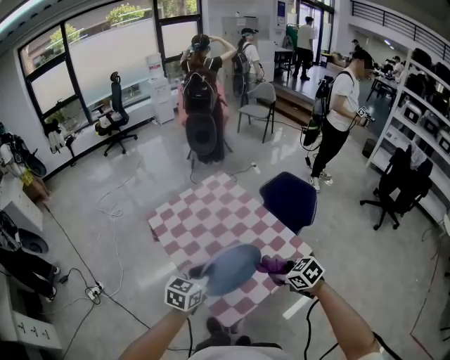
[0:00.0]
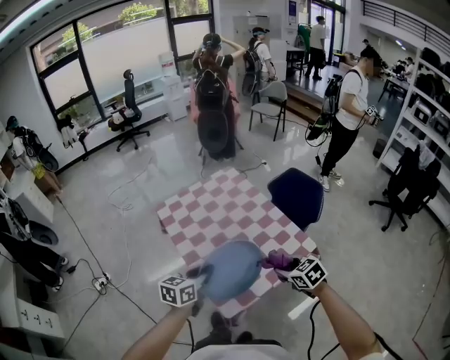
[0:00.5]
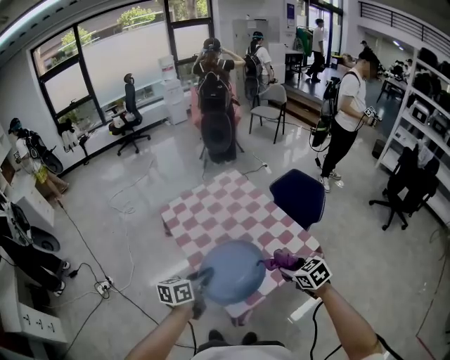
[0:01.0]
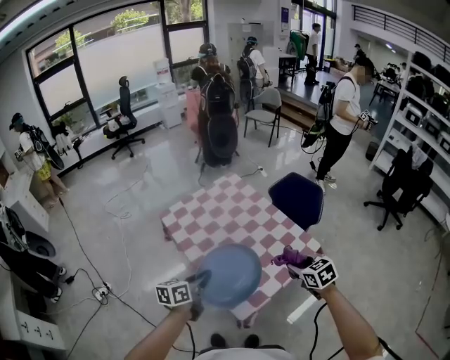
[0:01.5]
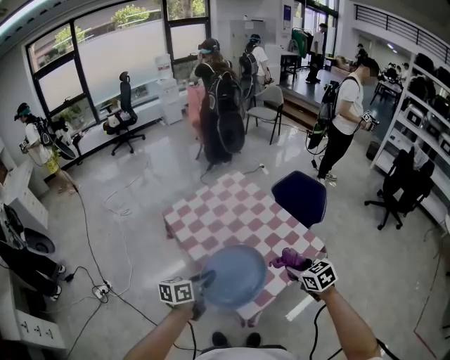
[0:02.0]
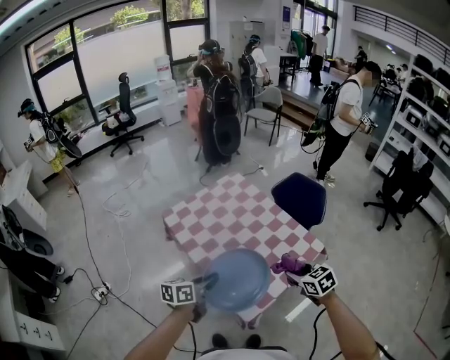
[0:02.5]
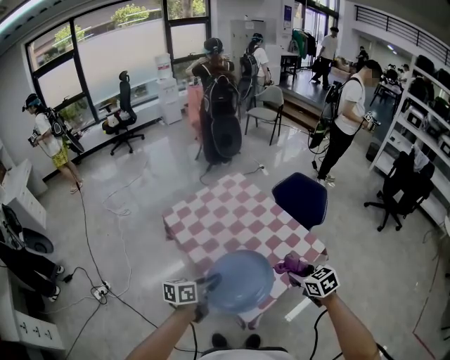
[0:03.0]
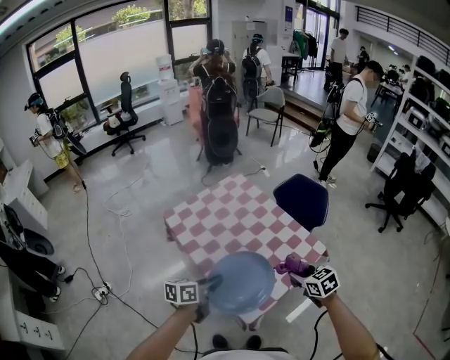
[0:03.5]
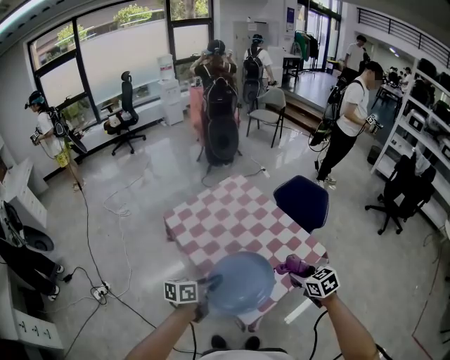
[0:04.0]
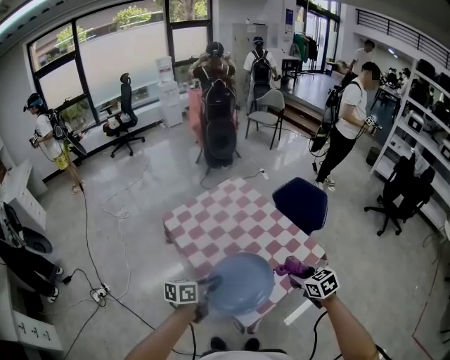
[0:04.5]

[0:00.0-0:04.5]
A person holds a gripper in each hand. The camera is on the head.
0:00.0 to 0:02.0: The left gripper moves to the left and backward, approximately 15 cm, and changes its angle by about 30 degrees. The right gripper moves approximately 5 cm.
0:02.0 to 0:04.5: The grippers make only small movements.

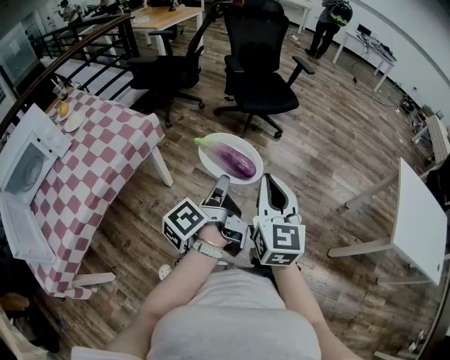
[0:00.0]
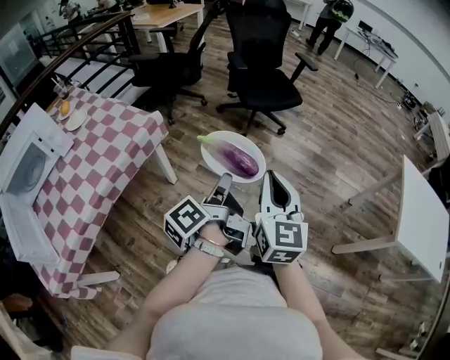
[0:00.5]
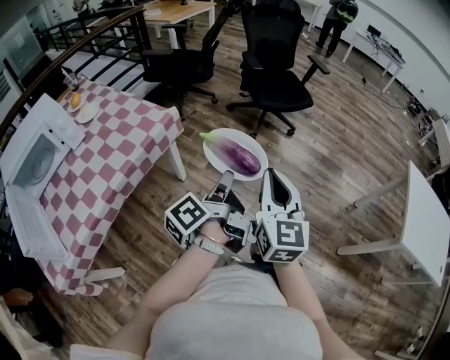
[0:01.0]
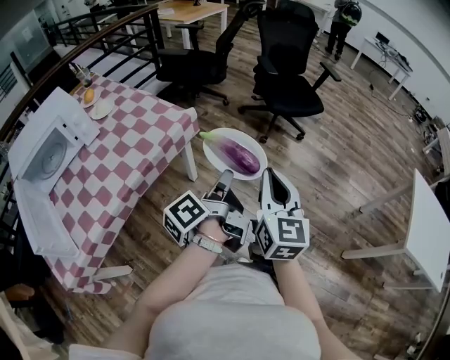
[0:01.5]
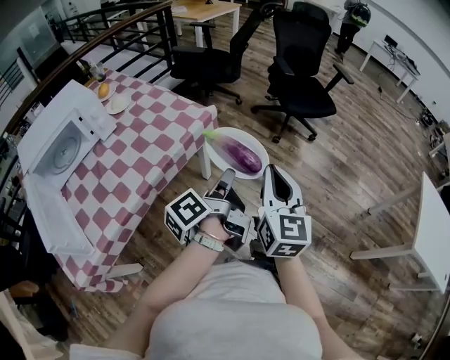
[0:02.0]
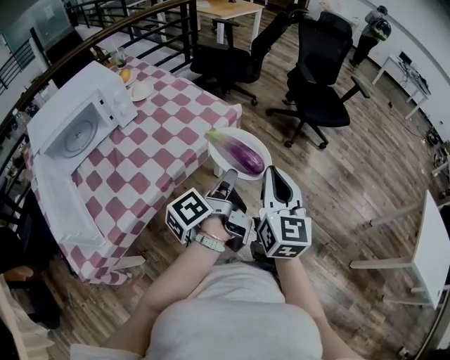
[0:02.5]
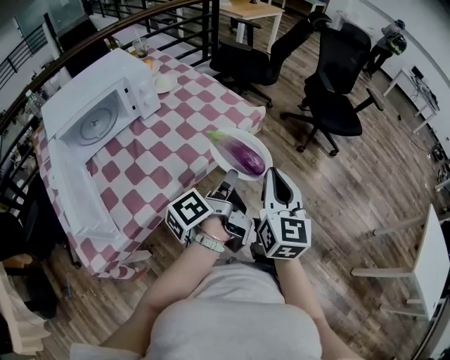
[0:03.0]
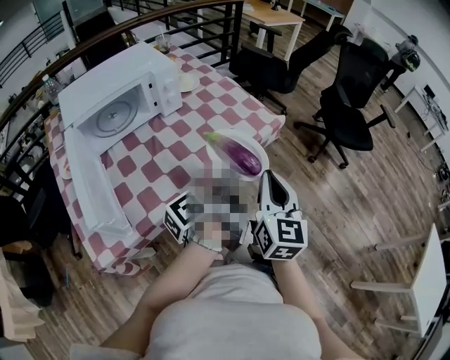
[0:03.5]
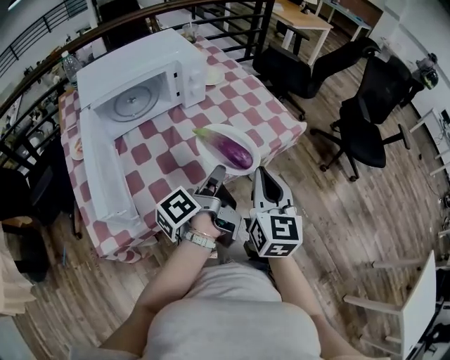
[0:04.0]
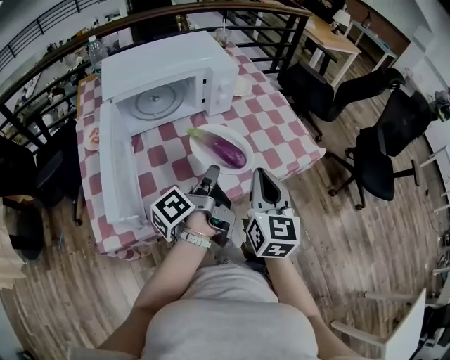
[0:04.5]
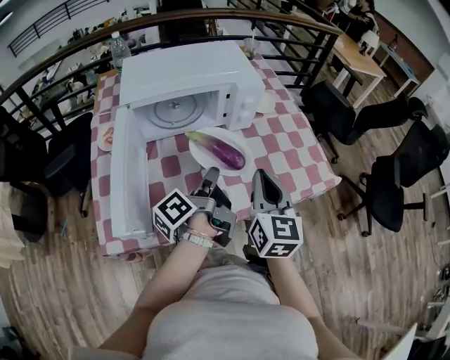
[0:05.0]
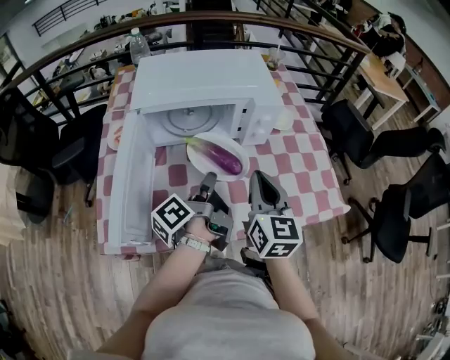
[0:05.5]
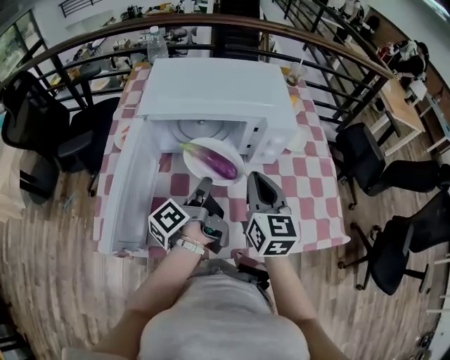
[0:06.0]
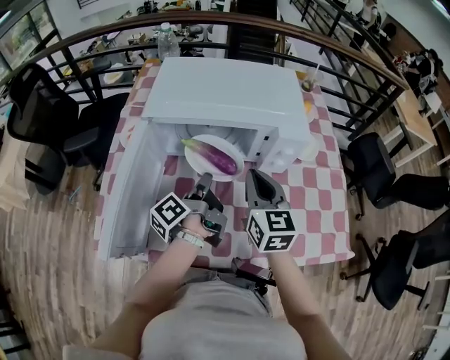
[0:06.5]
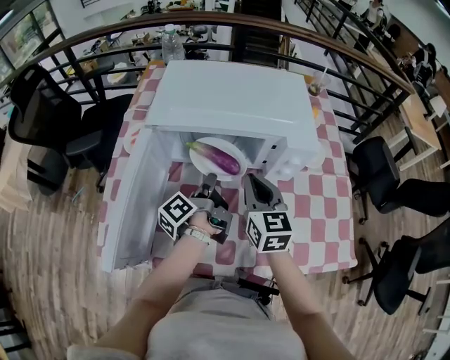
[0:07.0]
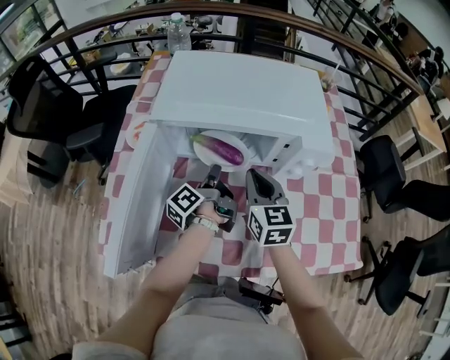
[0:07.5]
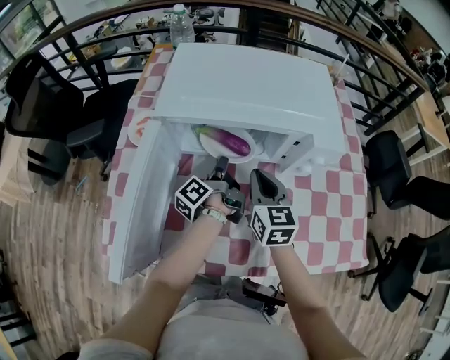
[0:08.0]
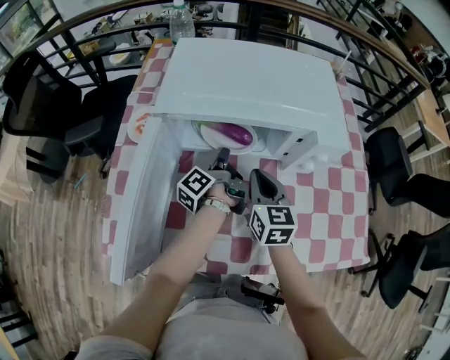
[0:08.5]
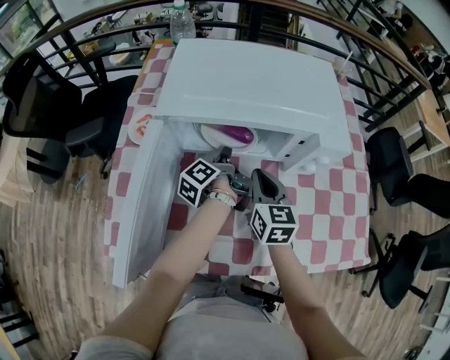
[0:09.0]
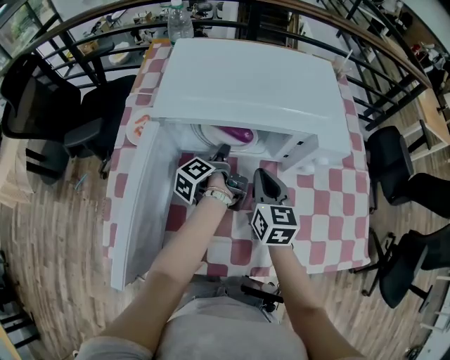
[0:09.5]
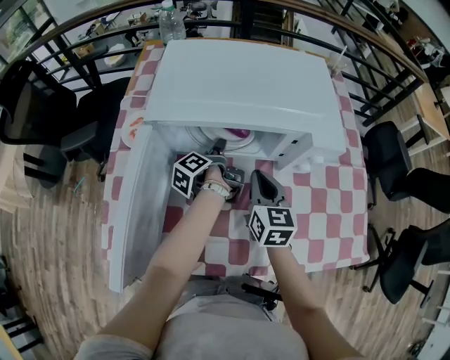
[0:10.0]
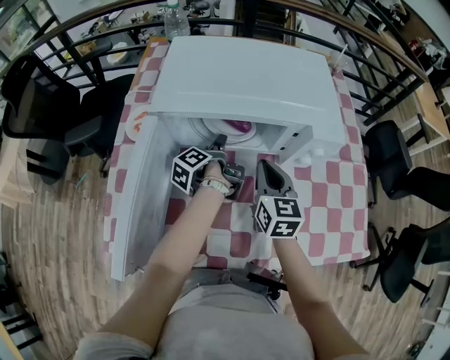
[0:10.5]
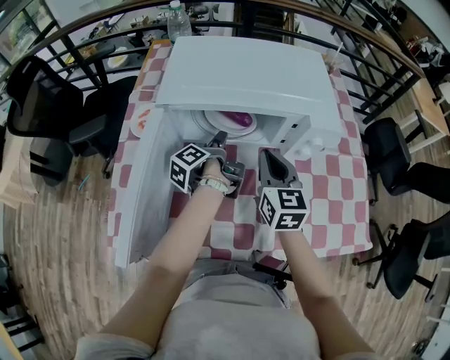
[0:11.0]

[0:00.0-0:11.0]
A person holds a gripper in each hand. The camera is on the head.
0:00.0 to 0:02.0: The right gripper shifts by some 25 cm.
0:02.0 to 0:03.5: The right gripper moves approximately 25 cm.
0:03.5 to 0:05.5: The right gripper moves about 30 cm, and turns by some 40 degrees.
0:05.5 to 0:07.5: The right gripper ends up approximately 20 cm from where it was, and rotates some 20 degrees.
0:09.0 to 0:11.0: The right gripper moves upward, about 5 cm.

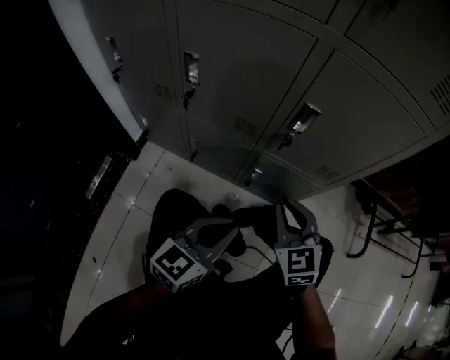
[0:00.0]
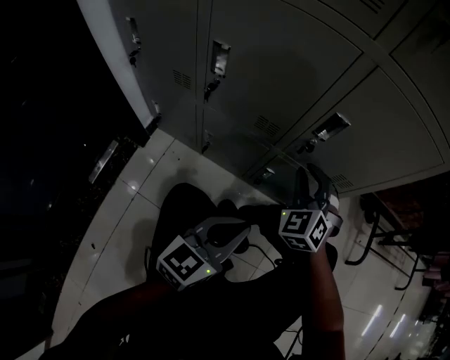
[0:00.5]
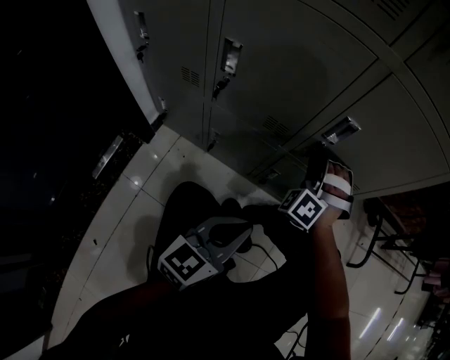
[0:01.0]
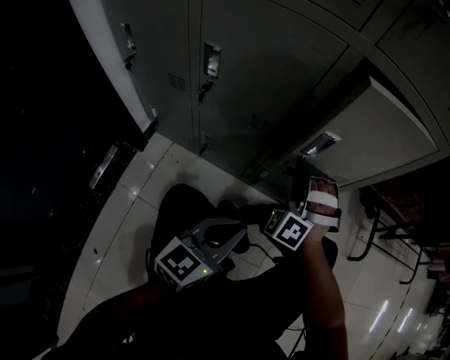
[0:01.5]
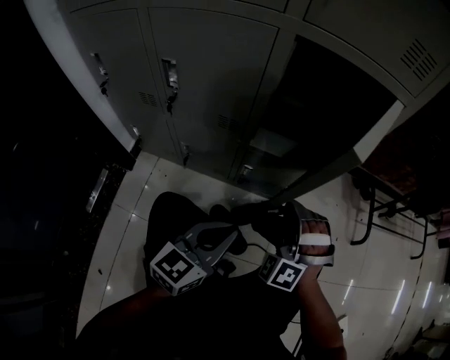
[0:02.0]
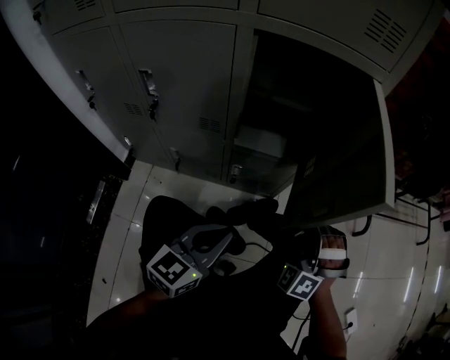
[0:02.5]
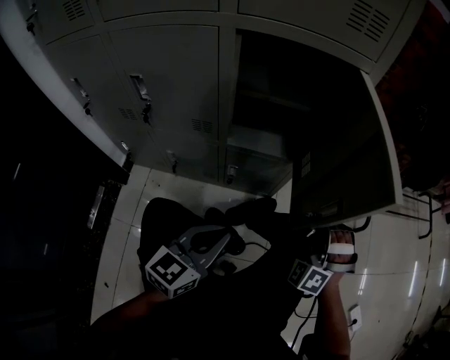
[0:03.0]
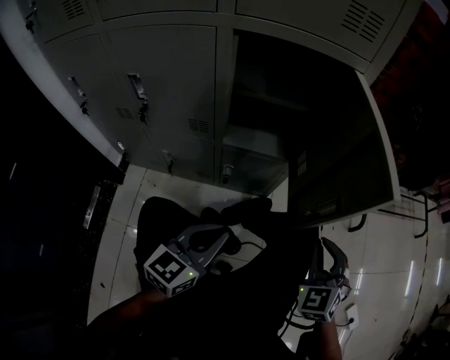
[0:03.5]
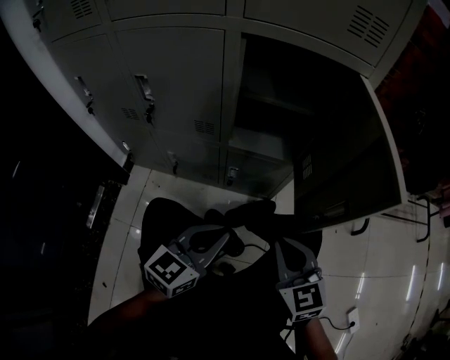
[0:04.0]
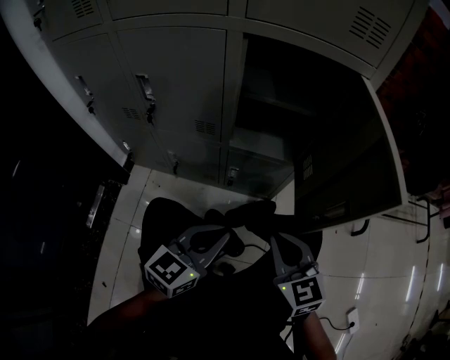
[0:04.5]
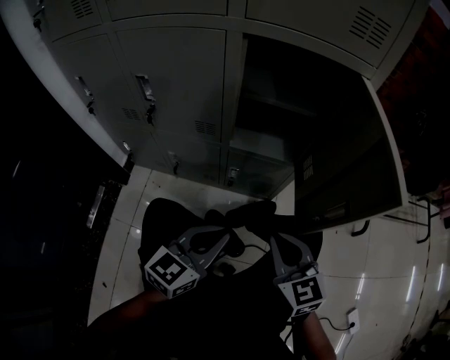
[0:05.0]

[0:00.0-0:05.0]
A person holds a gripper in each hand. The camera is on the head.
0:00.0 to 0:02.5: The left gripper is displaced to the right by some 5 cm. Meanwhile the right gripper moves to the right, about 15 cm, and changes its angle by roughly 60 degrees.
0:02.5 to 0:05.0: The right gripper goes about 10 cm backward and to the left, and rolls clockwise, seen from behind, by about 70 degrees.

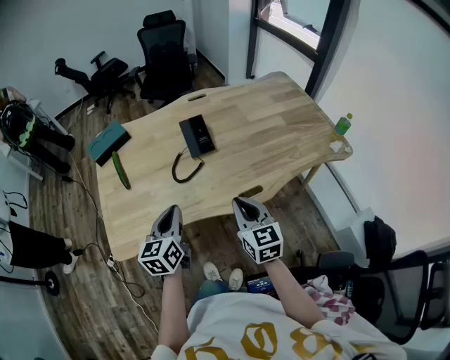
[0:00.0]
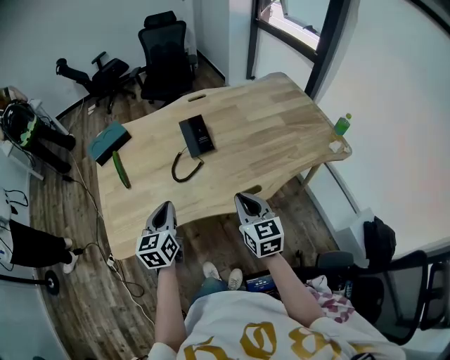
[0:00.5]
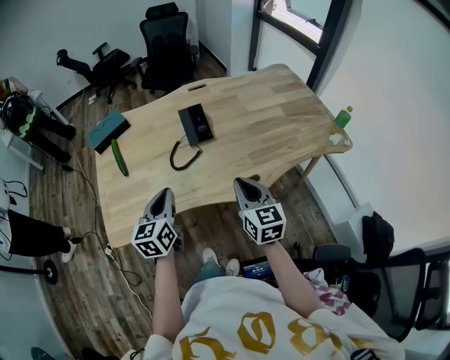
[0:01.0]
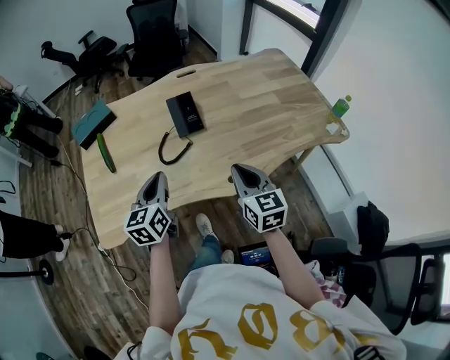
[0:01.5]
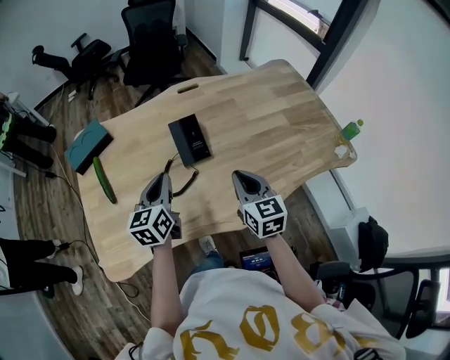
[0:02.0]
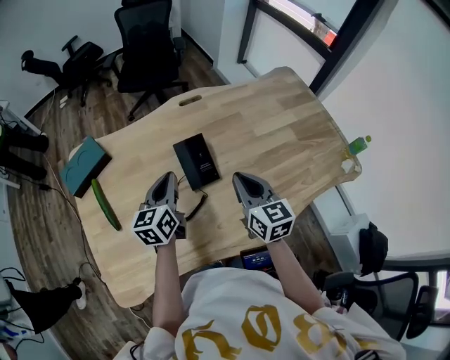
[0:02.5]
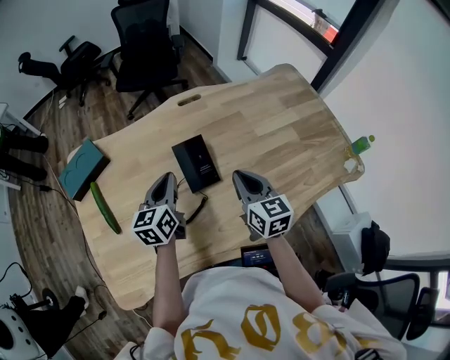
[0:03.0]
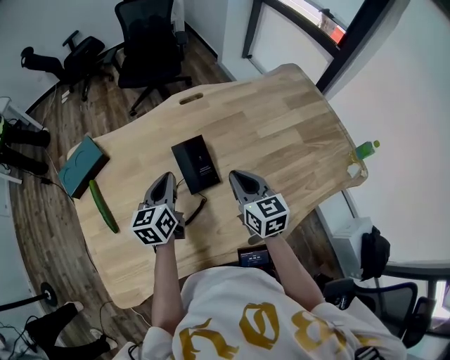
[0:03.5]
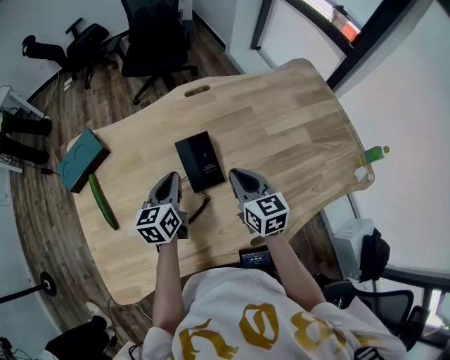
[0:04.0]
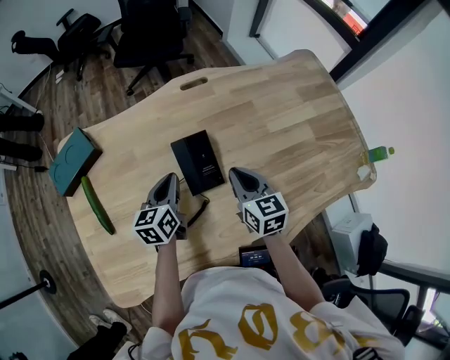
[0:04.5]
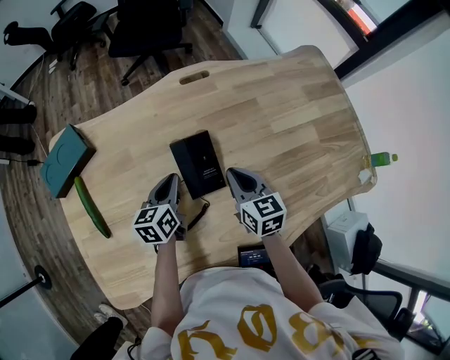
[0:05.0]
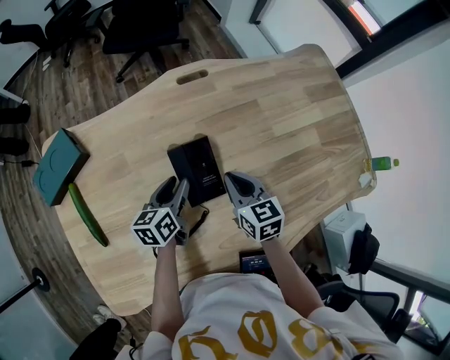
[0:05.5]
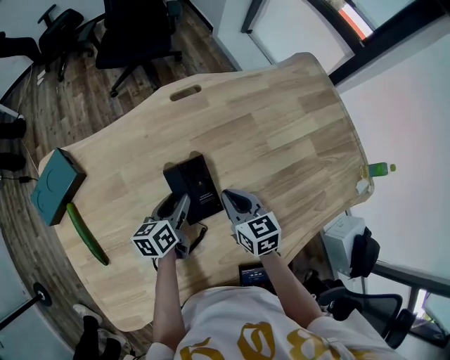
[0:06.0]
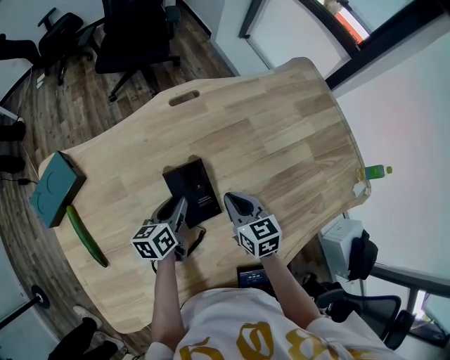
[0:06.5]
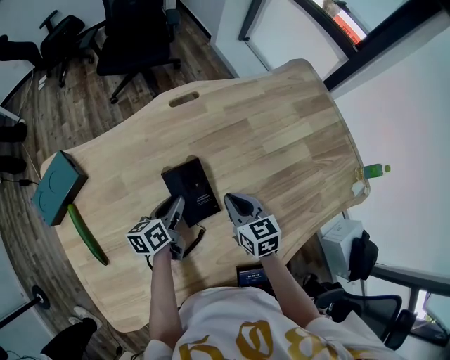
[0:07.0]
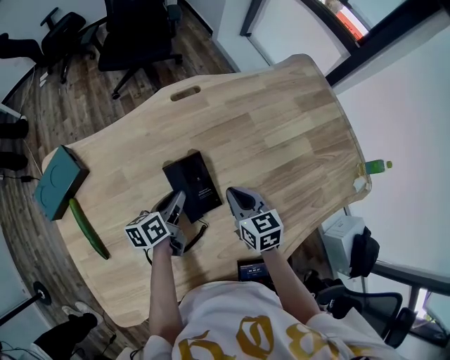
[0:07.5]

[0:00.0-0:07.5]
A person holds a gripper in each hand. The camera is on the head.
0:00.0 to 0:02.0: Both grippers move forward, approximately 20 cm.
0:02.0 to 0:04.0: The right gripper shifts approximately 15 cm forward. The left gripper travels forward and downward by about 15 cm.
0:04.0 to 0:05.5: Both grippers move downward, some 10 cm. The left gripper opens.
0:05.5 to 0:07.5: There are only small adjustments of the grippers.
